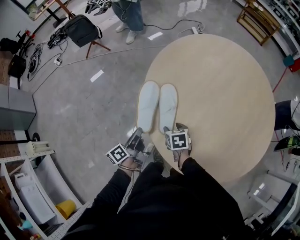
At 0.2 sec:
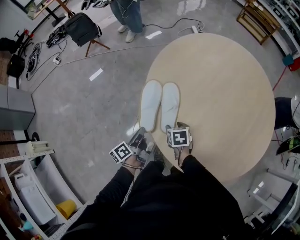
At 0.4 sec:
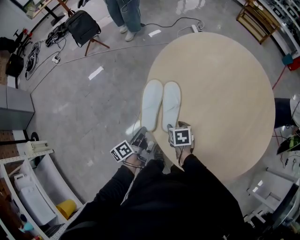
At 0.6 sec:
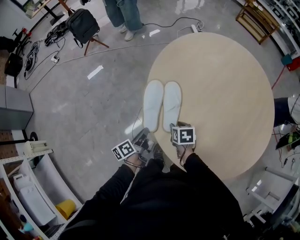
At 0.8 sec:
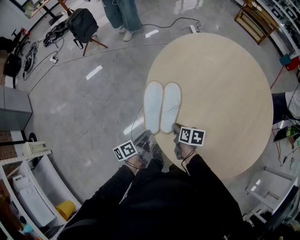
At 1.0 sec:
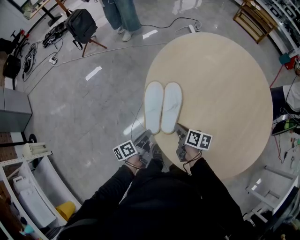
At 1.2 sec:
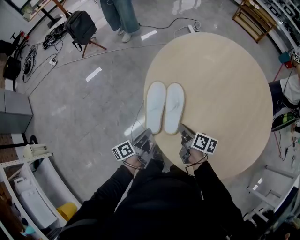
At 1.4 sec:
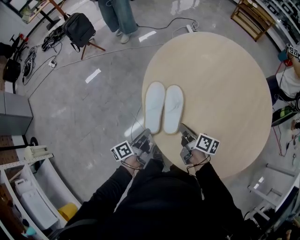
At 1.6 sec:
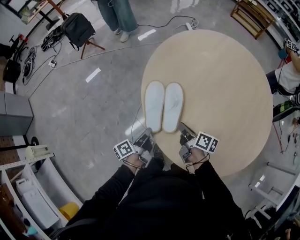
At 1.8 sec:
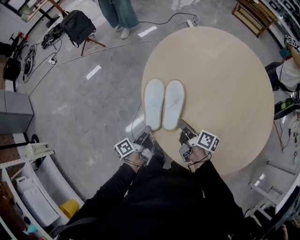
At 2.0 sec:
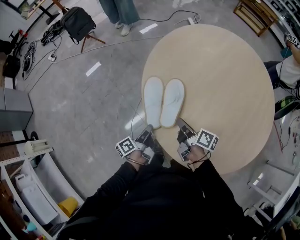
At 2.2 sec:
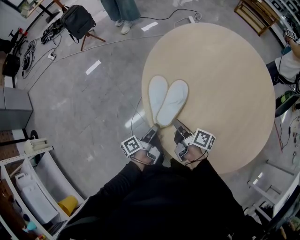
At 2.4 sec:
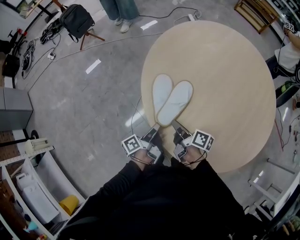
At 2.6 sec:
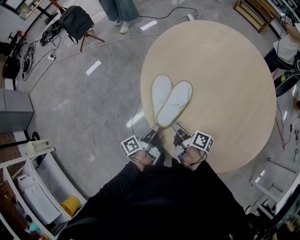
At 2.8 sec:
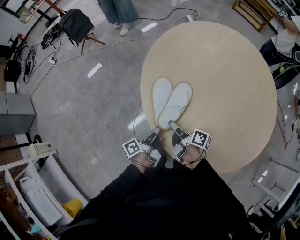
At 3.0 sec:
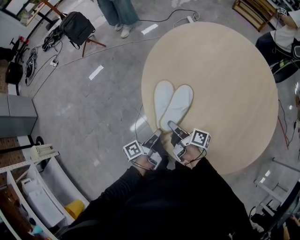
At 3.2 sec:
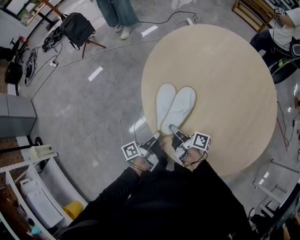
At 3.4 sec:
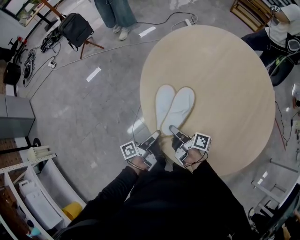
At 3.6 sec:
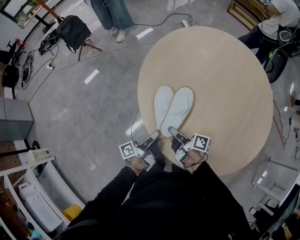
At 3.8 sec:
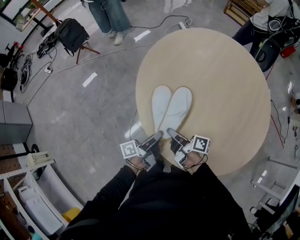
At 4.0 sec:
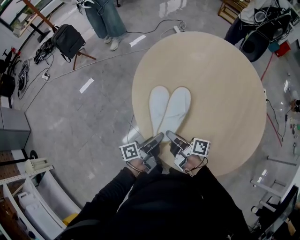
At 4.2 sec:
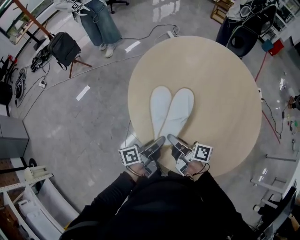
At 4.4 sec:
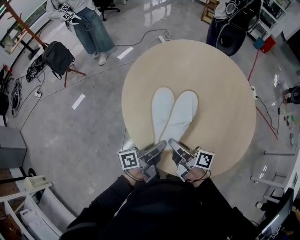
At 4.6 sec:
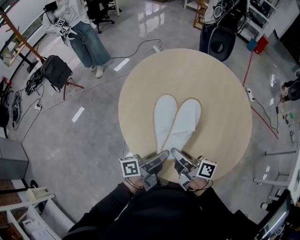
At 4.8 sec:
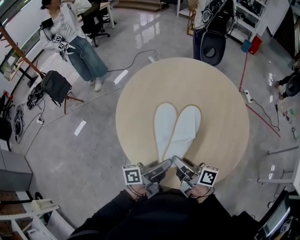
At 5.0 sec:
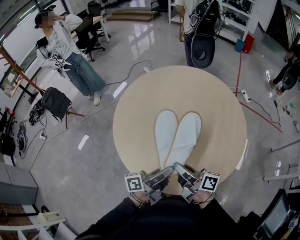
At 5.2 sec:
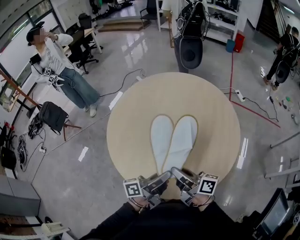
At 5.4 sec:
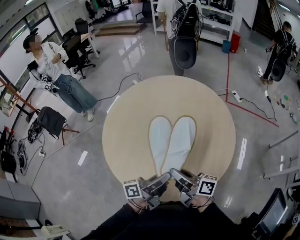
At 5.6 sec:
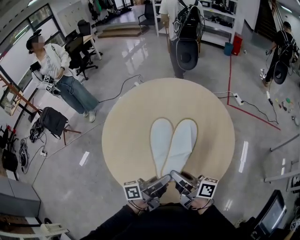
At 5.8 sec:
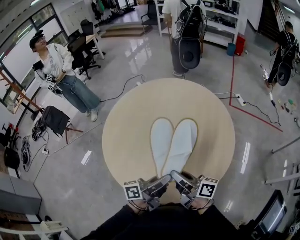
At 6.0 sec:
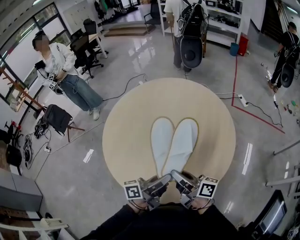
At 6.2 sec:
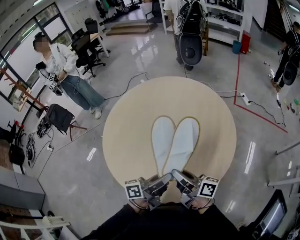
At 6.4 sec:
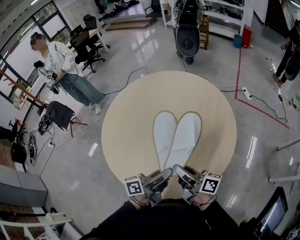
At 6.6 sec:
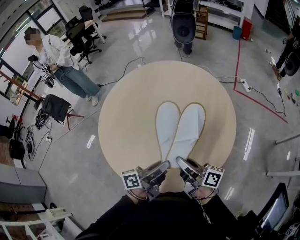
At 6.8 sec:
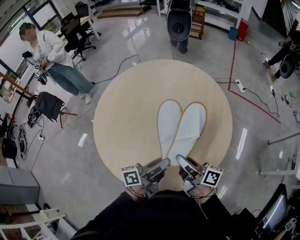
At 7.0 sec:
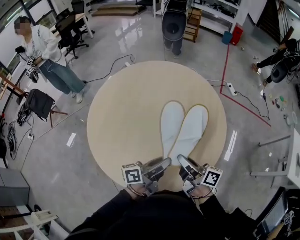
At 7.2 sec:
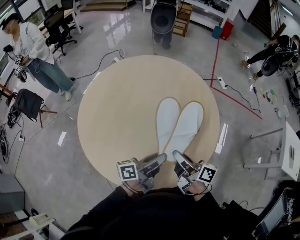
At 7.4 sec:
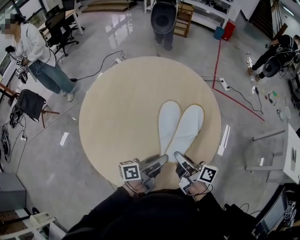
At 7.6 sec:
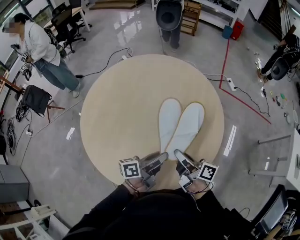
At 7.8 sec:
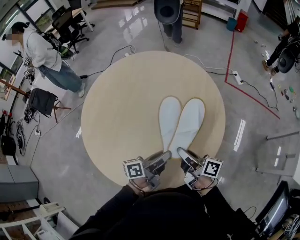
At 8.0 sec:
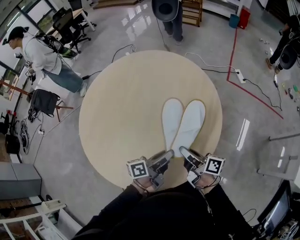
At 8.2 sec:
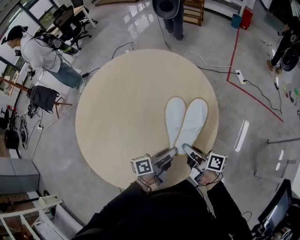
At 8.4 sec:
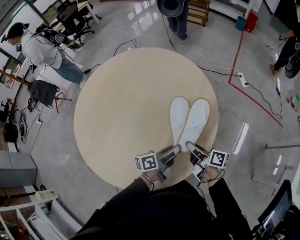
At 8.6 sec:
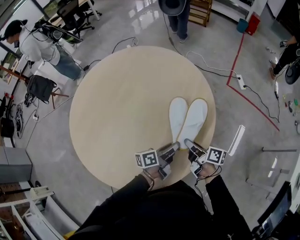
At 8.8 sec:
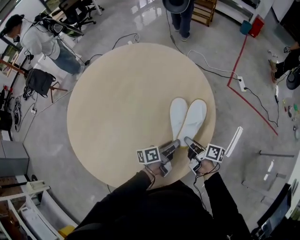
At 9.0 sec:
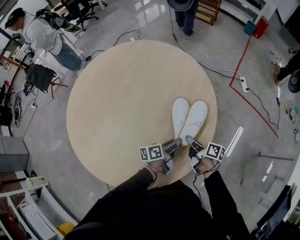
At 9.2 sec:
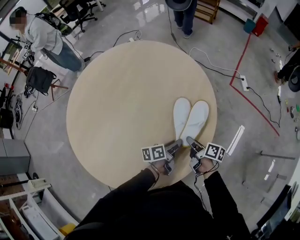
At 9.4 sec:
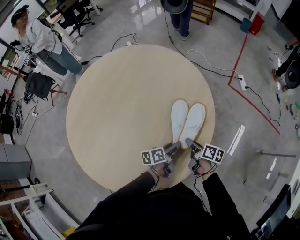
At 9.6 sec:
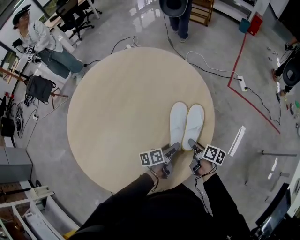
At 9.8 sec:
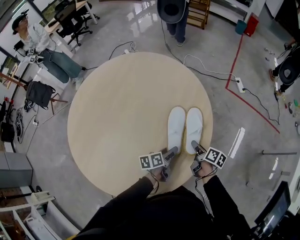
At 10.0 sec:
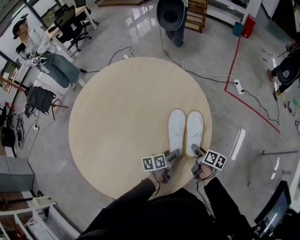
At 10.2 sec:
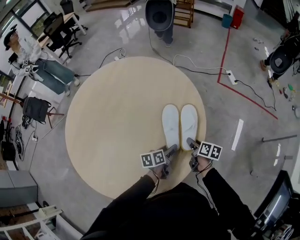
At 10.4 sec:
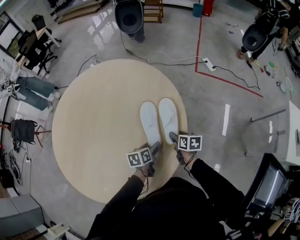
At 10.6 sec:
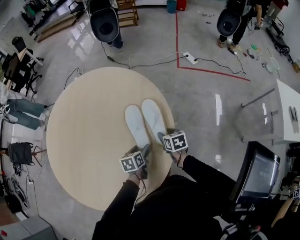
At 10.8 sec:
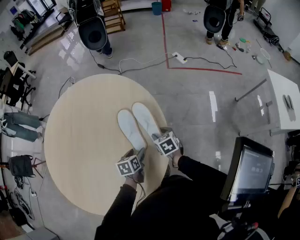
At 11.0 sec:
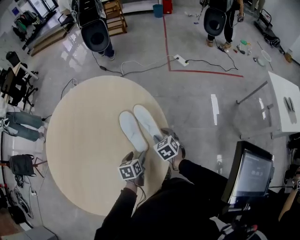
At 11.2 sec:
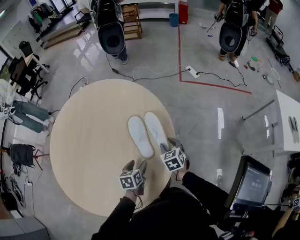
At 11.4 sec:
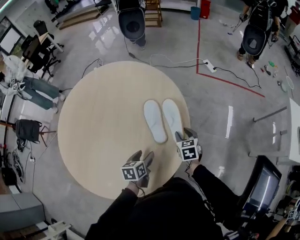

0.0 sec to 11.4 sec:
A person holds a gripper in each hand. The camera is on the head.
0.0 sec to 1.4 sec: The right gripper travels upward by about 5 cm, tips its fingers upward by approximately 30 degrees, and closes.
1.4 sec to 2.8 sec: The left gripper travels to the right by about 5 cm, while the right gripper moves approximately 5 cm, turns by some 20 degrees, and opens.
2.8 sec to 4.2 sec: The right gripper moves upward, roughly 10 cm, and closes. The left gripper heads upward and to the right, covering some 10 cm, and swivels roughly 30 degrees.
4.2 sec to 5.6 sec: Both grippers move to the right and upward, about 30 cm. The right gripper turns by some 20 degrees; the left gripper rotates about 30 degrees.
5.6 sec to 7.2 sec: The left gripper moves forward and downward, approximately 10 cm, while the right gripper goes roughly 10 cm to the right and forward.
7.2 sec to 8.6 sec: Both grippers move to the right, downward and forward, some 30 cm. The left gripper swivels approximately 20 degrees.
8.6 sec to 10.0 sec: The left gripper is displaced downward by some 10 cm, swivels approximately 20 degrees, and opens, while the right gripper shifts approximately 10 cm downward and to the right, turns by some 30 degrees, and opens up.
10.0 sec to 11.4 sec: The right gripper changes place by roughly 5 cm, and twists about 50 degrees counterclockwise, seen from behind, while the left gripper is displaced backward by approximately 5 cm, and rotates roughly 30 degrees.

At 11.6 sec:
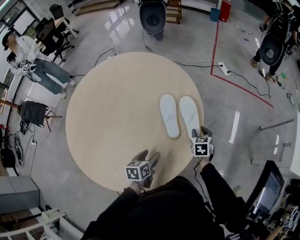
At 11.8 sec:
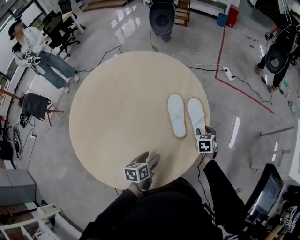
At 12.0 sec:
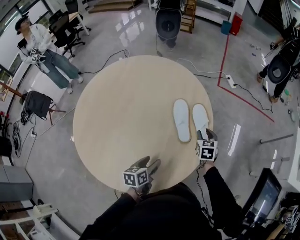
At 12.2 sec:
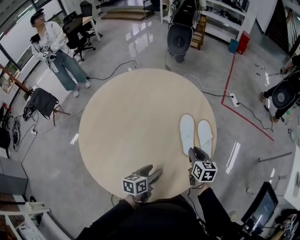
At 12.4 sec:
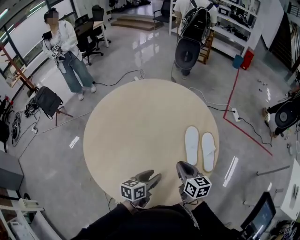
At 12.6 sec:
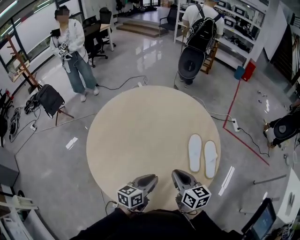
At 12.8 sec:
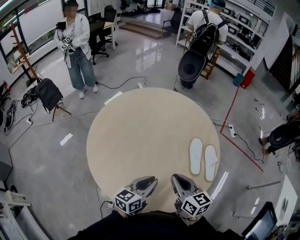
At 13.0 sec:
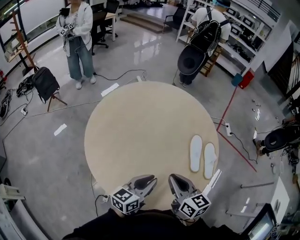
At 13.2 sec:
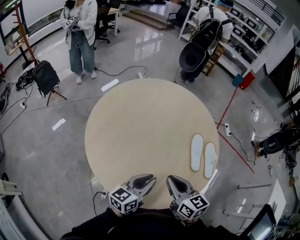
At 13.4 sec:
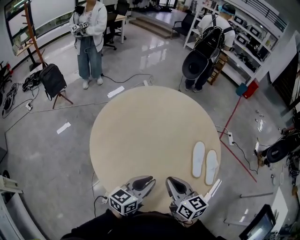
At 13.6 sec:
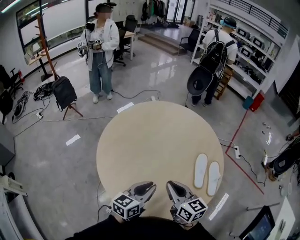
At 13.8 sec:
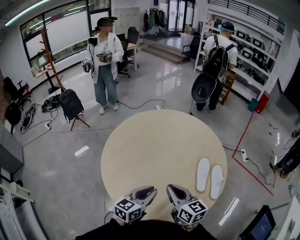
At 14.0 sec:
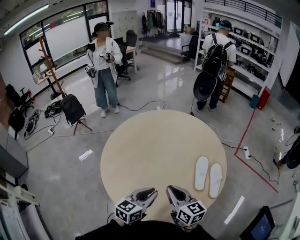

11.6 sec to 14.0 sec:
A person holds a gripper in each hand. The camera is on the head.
11.6 sec to 12.8 sec: The left gripper changes place by approximately 25 cm, tilts its fingers about 30 degrees upward, and closes its fingers, while the right gripper changes place by roughly 40 cm, points its fingers some 30 degrees further upward, and closes its fingers.
12.8 sec to 14.0 sec: The left gripper moves about 5 cm.

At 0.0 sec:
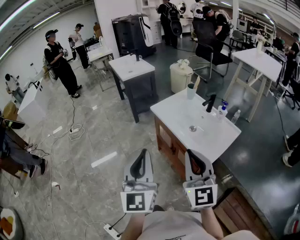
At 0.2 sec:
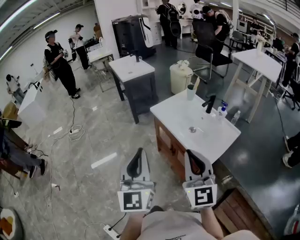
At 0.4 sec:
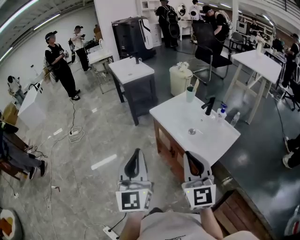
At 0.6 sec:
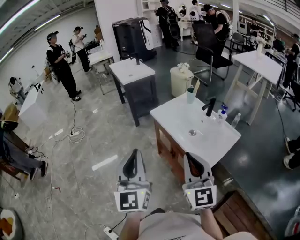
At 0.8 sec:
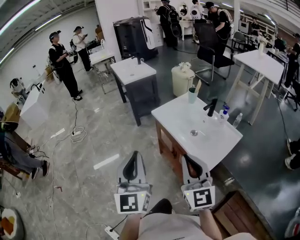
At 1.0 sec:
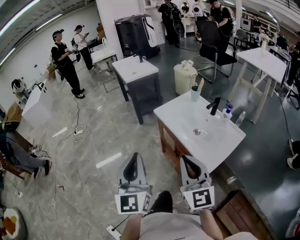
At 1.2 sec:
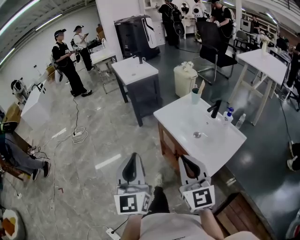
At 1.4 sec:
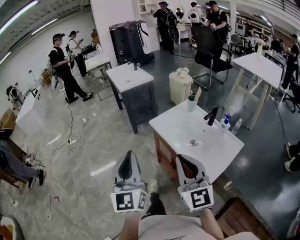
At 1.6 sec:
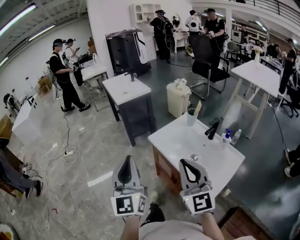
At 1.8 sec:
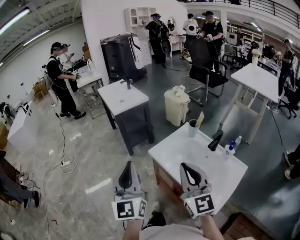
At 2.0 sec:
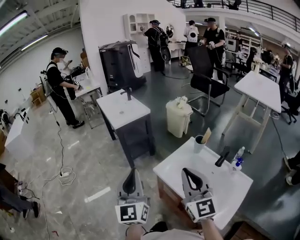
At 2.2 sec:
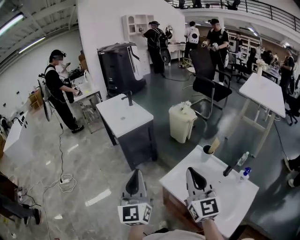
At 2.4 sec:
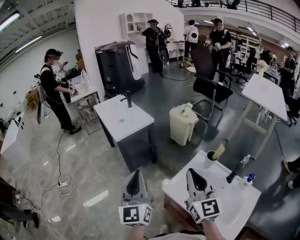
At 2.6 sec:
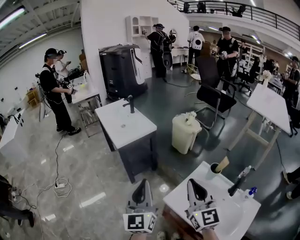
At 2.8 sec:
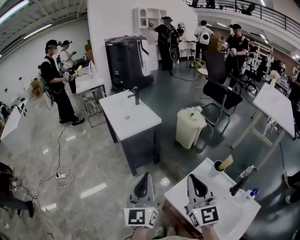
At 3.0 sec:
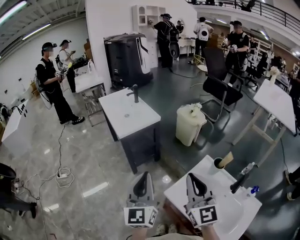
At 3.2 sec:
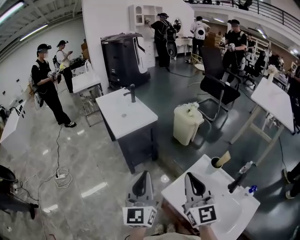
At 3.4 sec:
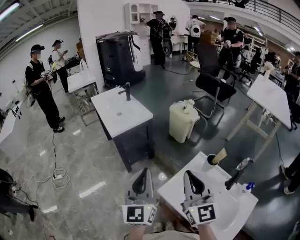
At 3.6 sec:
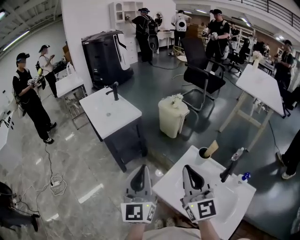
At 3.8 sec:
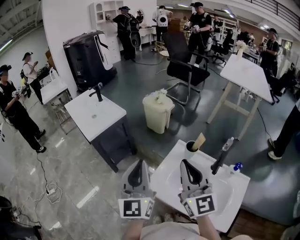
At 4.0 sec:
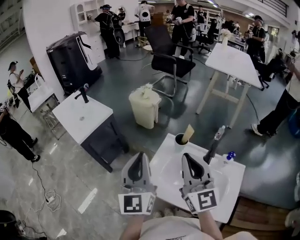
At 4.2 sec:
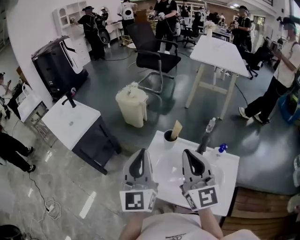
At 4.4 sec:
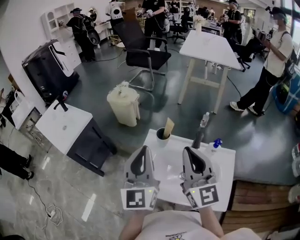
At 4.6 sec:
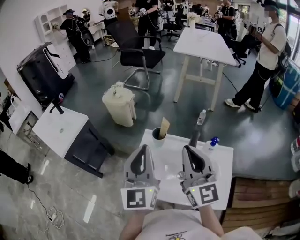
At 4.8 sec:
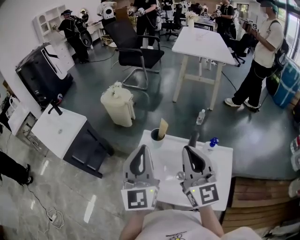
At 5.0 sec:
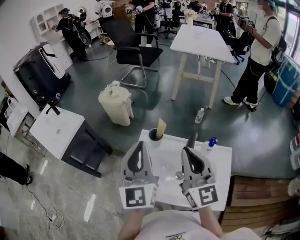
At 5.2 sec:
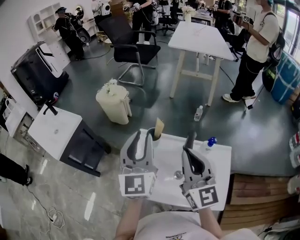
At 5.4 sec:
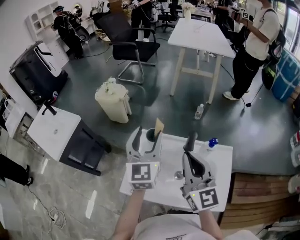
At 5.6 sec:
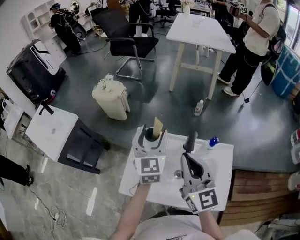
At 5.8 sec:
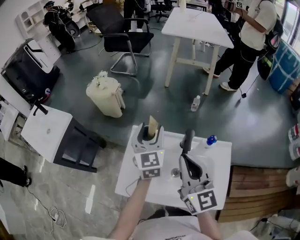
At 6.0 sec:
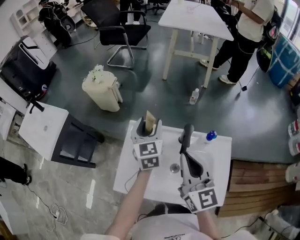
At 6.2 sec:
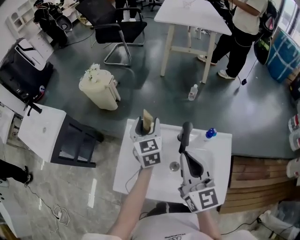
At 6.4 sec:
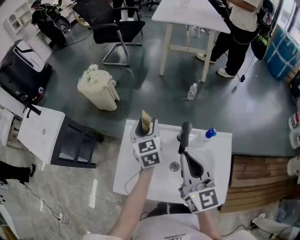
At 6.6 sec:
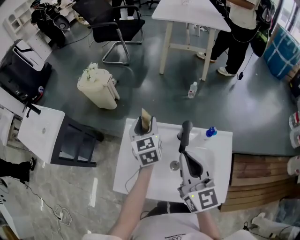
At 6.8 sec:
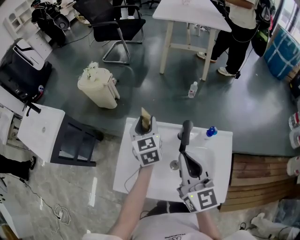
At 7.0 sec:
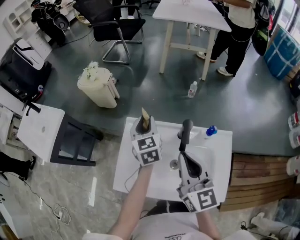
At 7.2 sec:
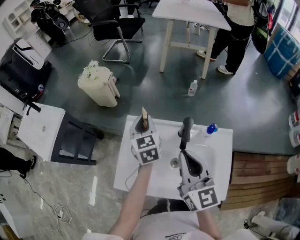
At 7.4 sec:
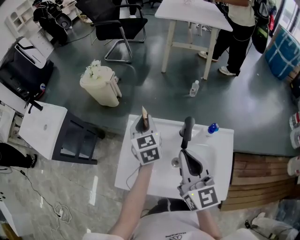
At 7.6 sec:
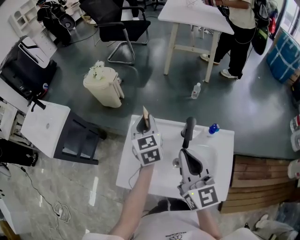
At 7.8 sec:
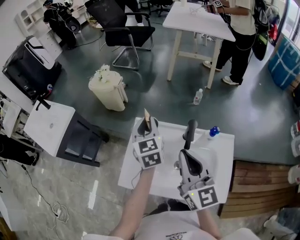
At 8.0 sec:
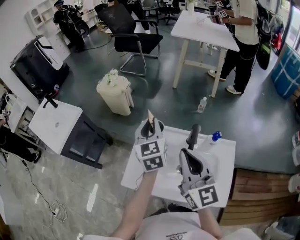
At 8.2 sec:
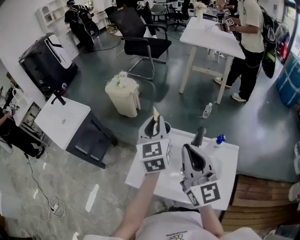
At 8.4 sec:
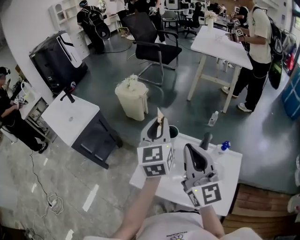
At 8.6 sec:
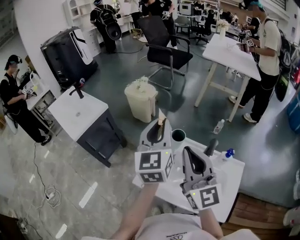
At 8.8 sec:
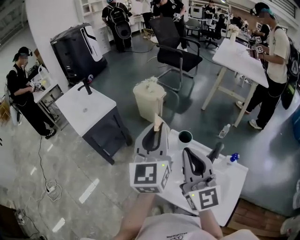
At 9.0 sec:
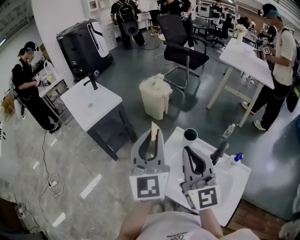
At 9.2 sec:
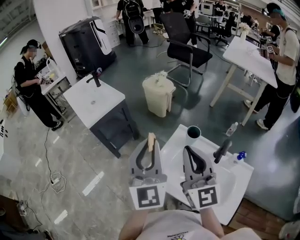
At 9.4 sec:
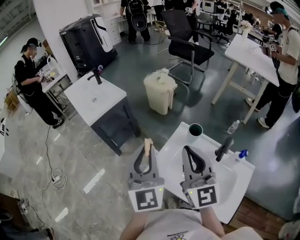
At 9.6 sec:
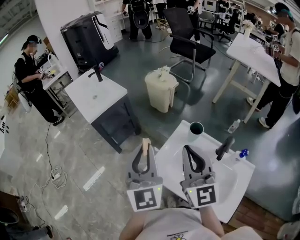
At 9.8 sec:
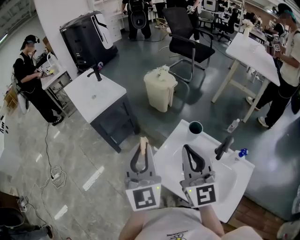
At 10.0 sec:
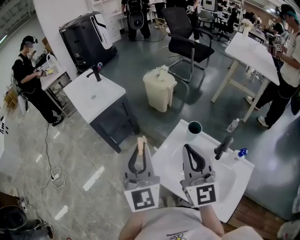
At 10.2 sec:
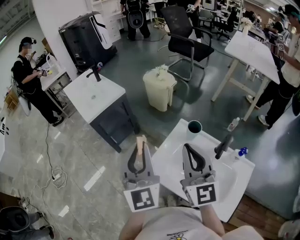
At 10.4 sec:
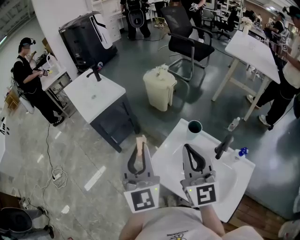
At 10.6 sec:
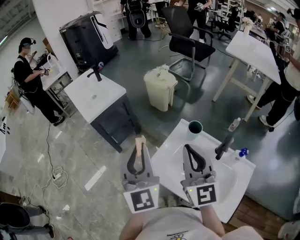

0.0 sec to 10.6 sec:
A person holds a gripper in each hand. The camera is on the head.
0.0 sec to 1.6 sec: The two grippers go roughly 15 cm forward.
1.6 sec to 3.0 sec: Both grippers move forward, roughly 35 cm.
3.0 sec to 4.6 sec: The right gripper shifts by roughly 25 cm, and turns by about 30 degrees, while the left gripper ends up about 25 cm from where it was, and swivels some 30 degrees.
4.6 sec to 6.0 sec: The right gripper heads downward and to the right, covering roughly 10 cm. The left gripper goes approximately 25 cm forward, downward and to the right, swivels some 30 degrees, and opens its fingers.
6.0 sec to 7.6 sec: The left gripper closes its fingers.
7.6 sec to 9.0 sec: The right gripper is displaced to the left and upward by approximately 20 cm, and turns by approximately 30 degrees. Meanwhile the left gripper goes approximately 30 cm upward, to the left and backward, and points its fingers roughly 30 degrees further upward.
9.0 sec to 10.6 sec: The left gripper is displaced to the left and downward by about 10 cm.
